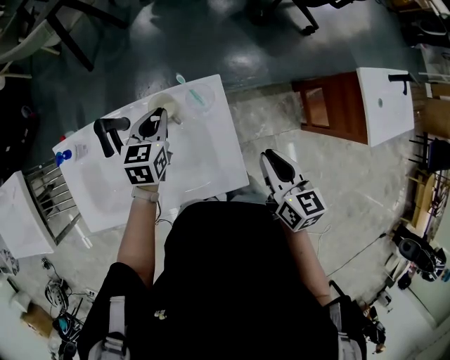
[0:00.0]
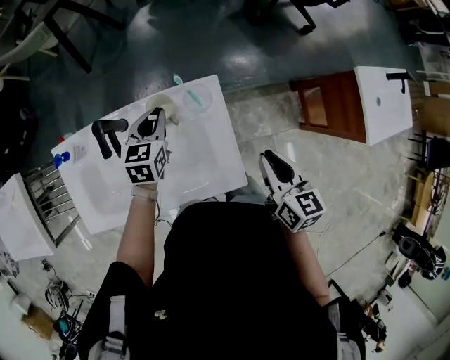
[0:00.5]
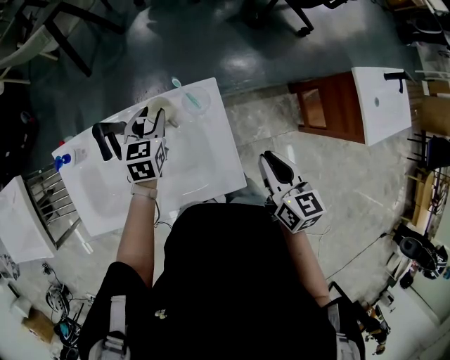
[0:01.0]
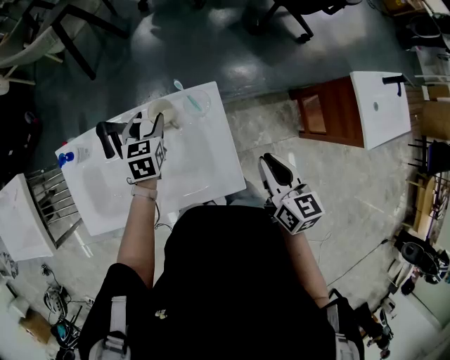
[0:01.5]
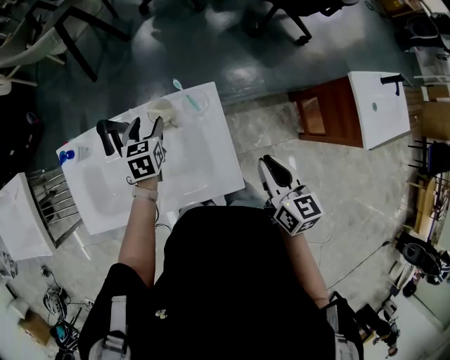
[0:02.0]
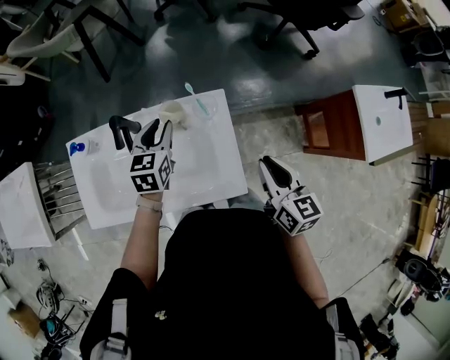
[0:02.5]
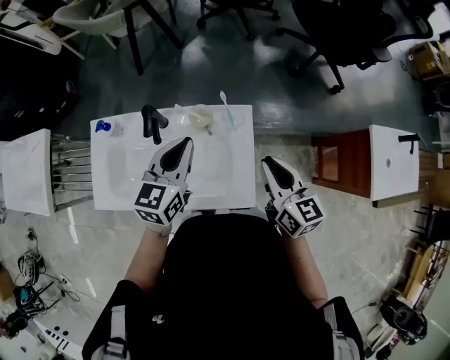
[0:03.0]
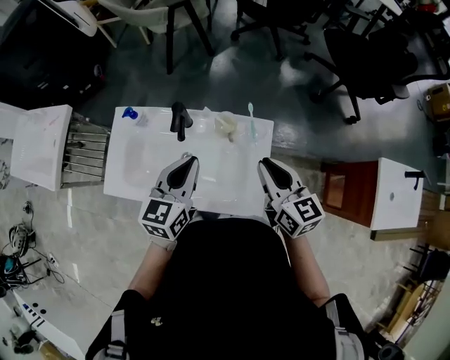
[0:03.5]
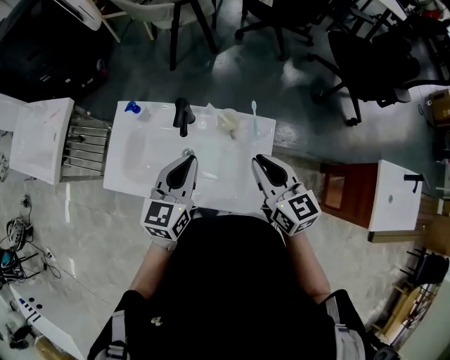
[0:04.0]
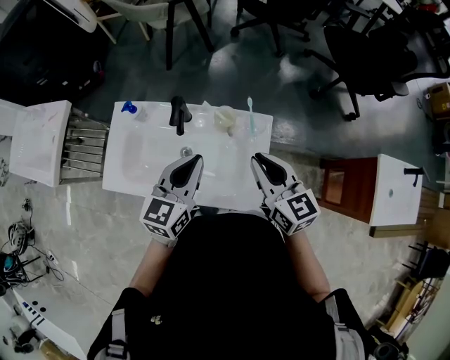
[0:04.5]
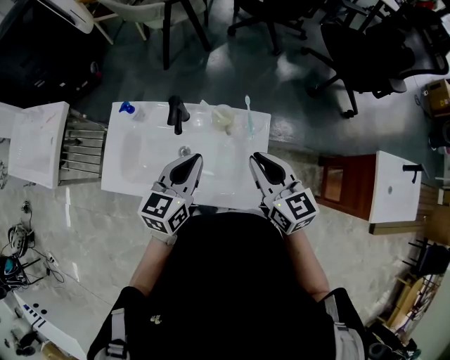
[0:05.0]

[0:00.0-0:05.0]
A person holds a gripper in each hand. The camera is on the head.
0:00.0 to 0:02.5: The left gripper shifts by about 5 cm, and opens.
0:02.5 to 0:05.0: The right gripper travels to the left, upward and forward by roughly 15 cm, and swivels about 30 degrees, while the left gripper heads backward and upward, covering about 15 cm, and closes its fingers.

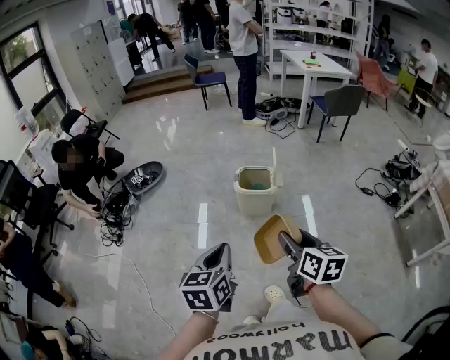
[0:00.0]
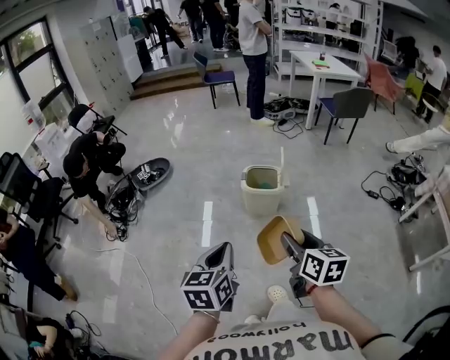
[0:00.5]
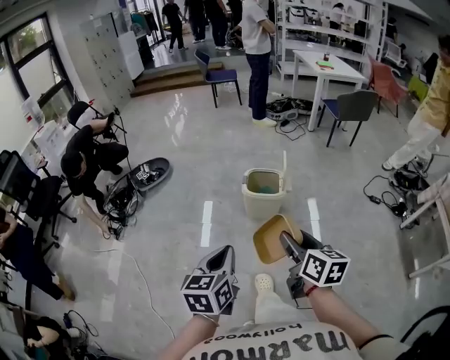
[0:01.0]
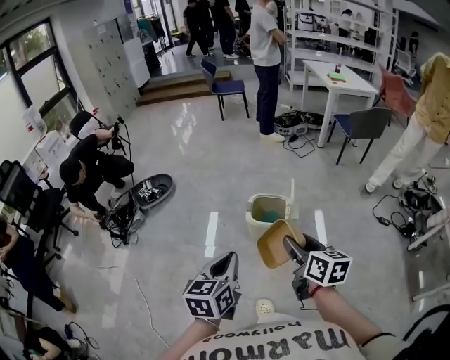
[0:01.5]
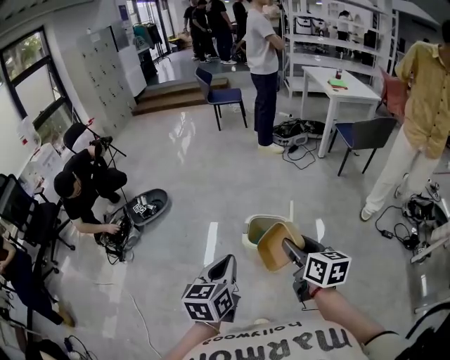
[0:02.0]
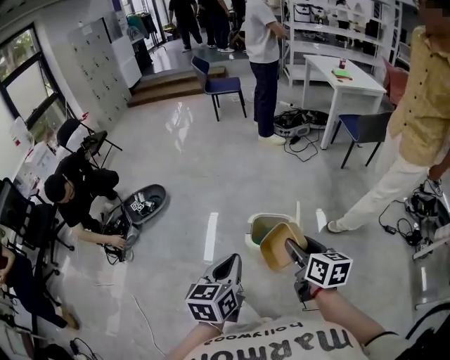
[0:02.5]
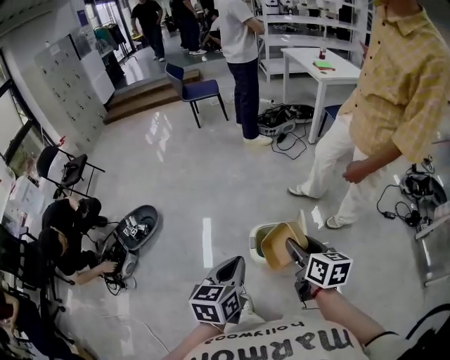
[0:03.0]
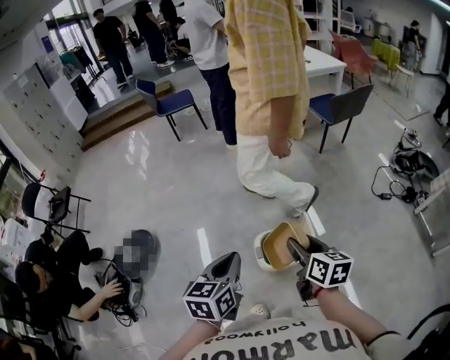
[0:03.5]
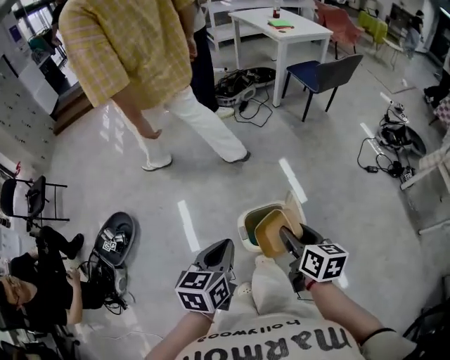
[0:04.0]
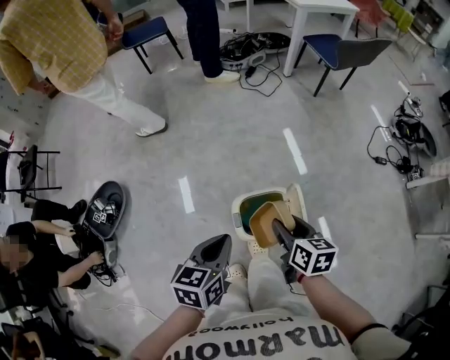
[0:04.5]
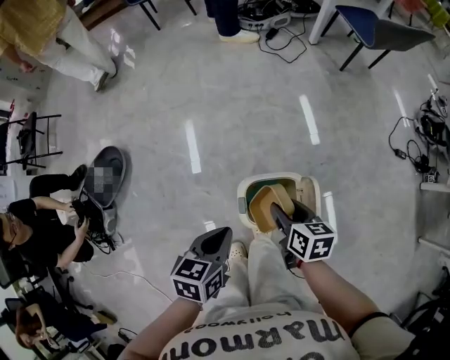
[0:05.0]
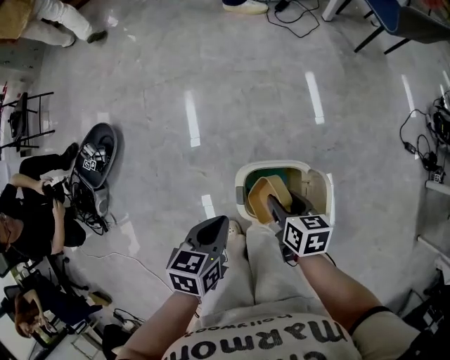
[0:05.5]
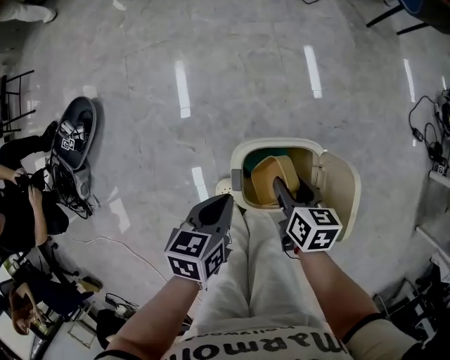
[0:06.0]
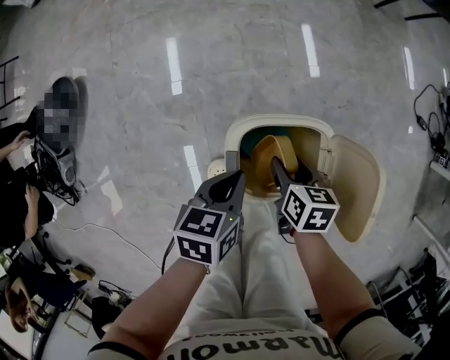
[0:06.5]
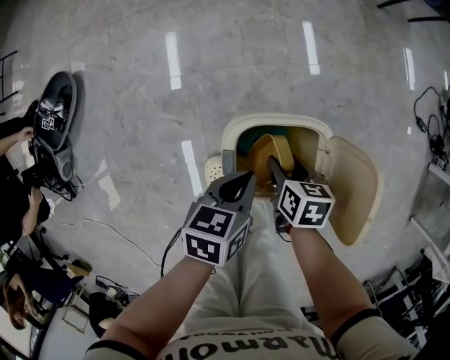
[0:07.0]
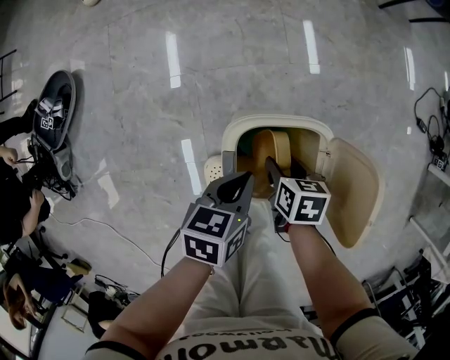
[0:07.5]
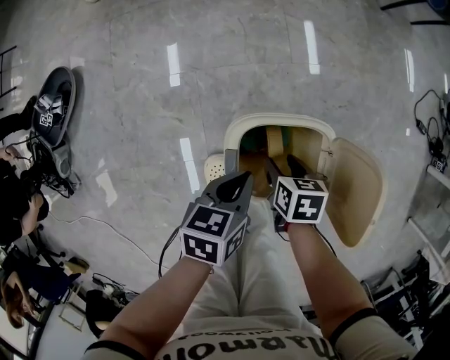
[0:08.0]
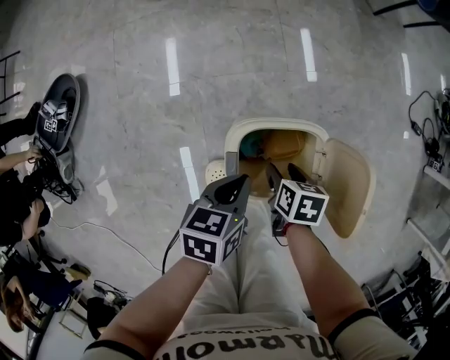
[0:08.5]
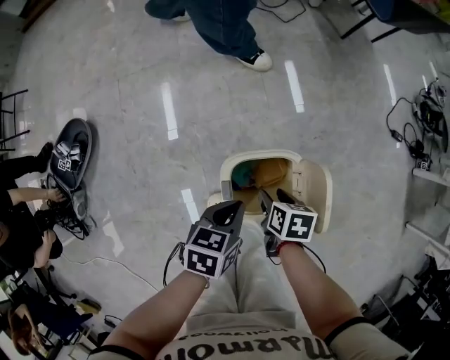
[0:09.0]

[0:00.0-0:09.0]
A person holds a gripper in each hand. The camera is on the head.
0:00.0 to 0:02.0: Both grippers travel together forward, some 30 cm.
0:02.0 to 0:04.5: The left gripper ends up roughly 30 cm from where it was, and turns by roughly 30 degrees. Meanwhile the right gripper shifts by approximately 30 cm, and rotates approximately 30 degrees.
0:04.5 to 0:07.0: Both grippers travel together downward, some 30 cm. The left gripper rotates approximately 20 degrees, while the right gripper swivels some 30 degrees.
0:07.0 to 0:09.0: The two grippers go approximately 10 cm upward.

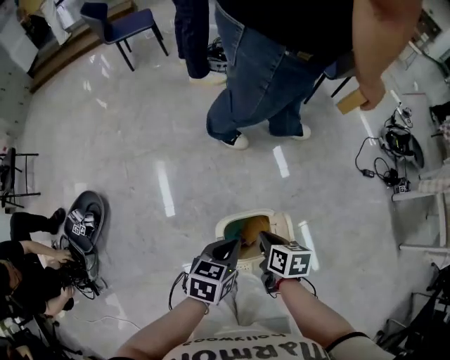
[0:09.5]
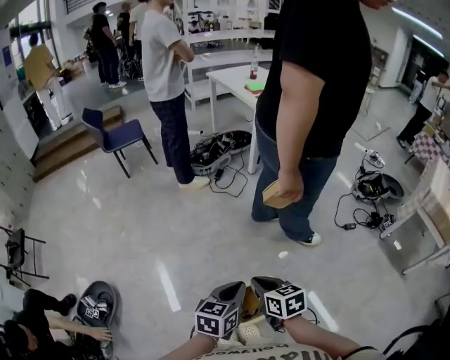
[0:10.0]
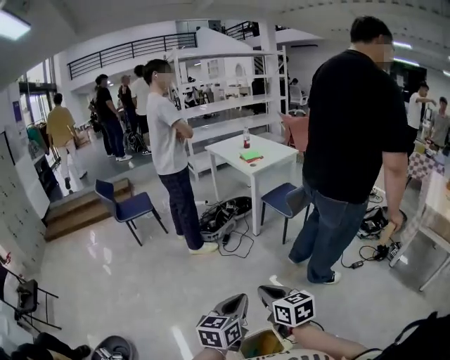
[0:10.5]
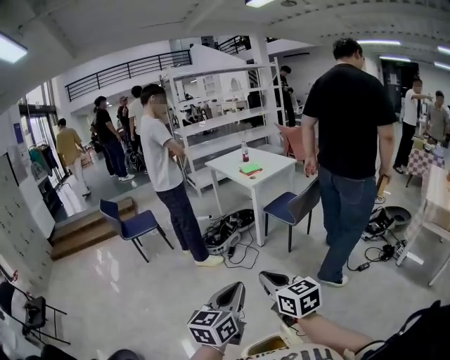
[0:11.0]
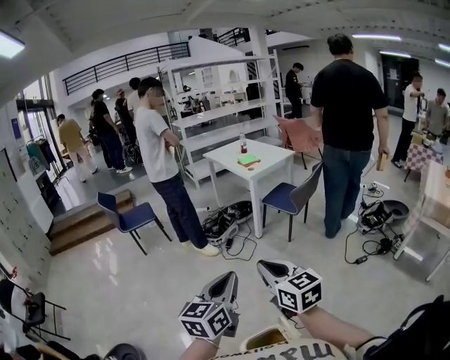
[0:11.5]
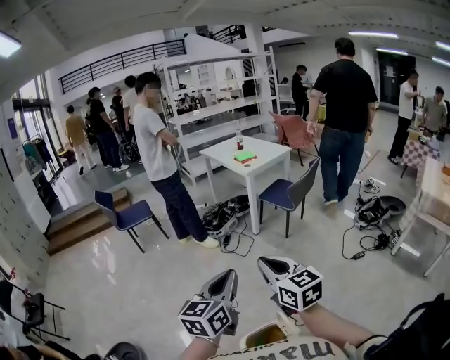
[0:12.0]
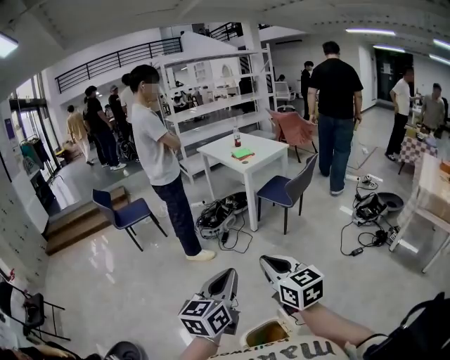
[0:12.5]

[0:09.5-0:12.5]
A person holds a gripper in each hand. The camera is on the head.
0:09.5 to 0:11.0: Both grippers move upward, some 40 cm. The left gripper points its fingers approximately 40 degrees further upward, while the right gripper tilts its fingers some 40 degrees upward.
0:11.0 to 0:12.5: The grippers move only a little.

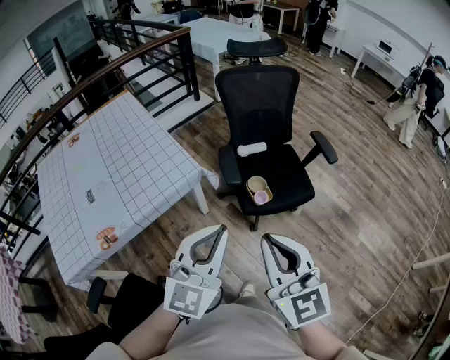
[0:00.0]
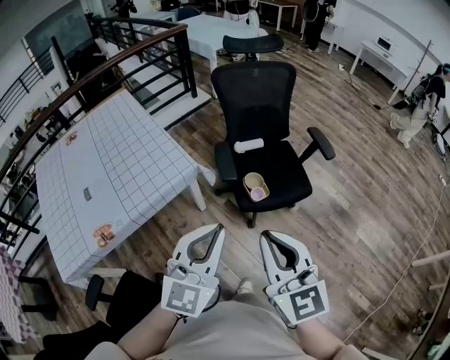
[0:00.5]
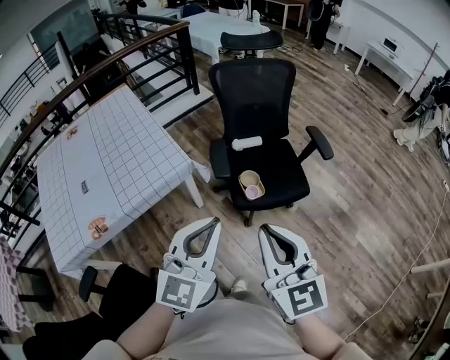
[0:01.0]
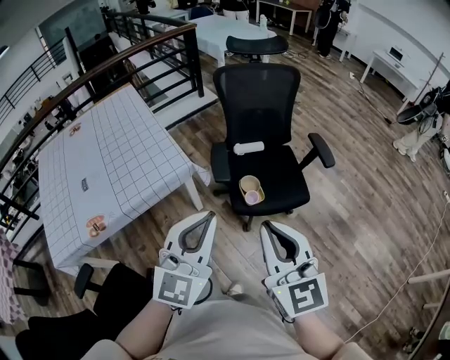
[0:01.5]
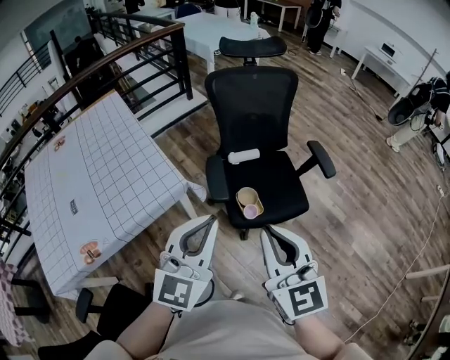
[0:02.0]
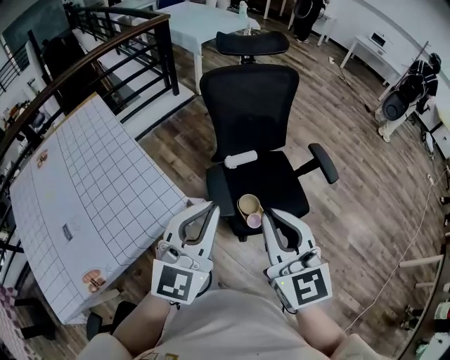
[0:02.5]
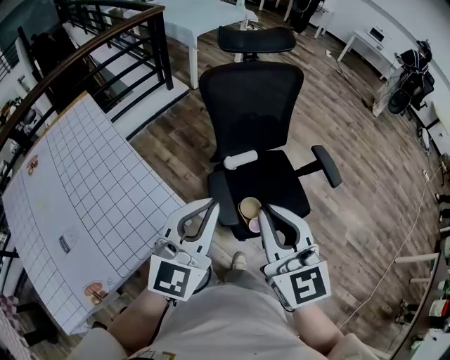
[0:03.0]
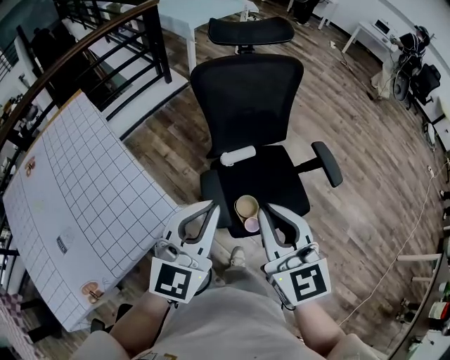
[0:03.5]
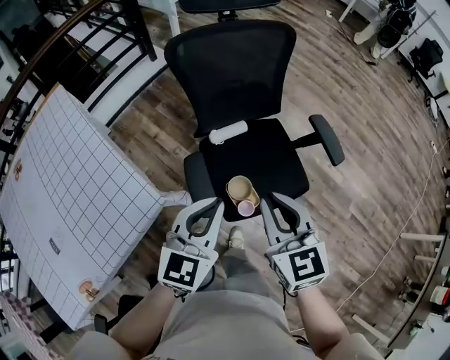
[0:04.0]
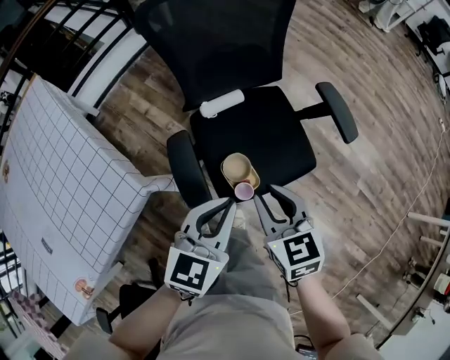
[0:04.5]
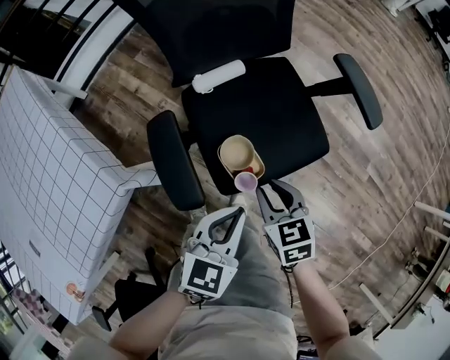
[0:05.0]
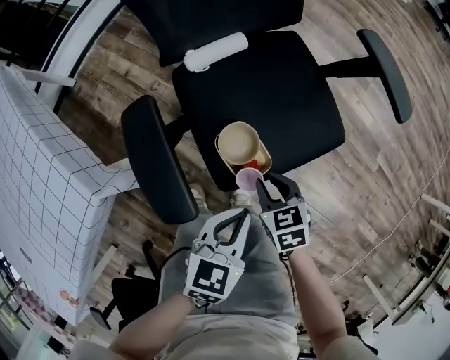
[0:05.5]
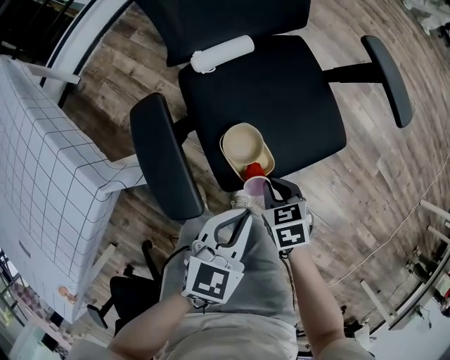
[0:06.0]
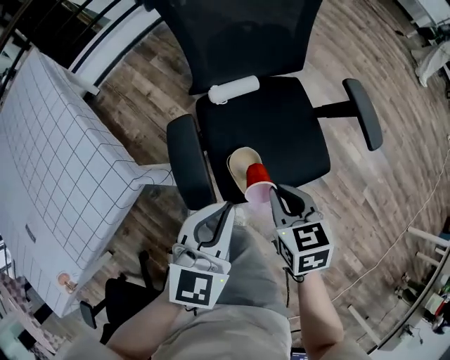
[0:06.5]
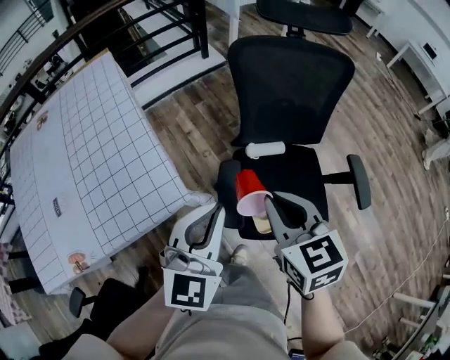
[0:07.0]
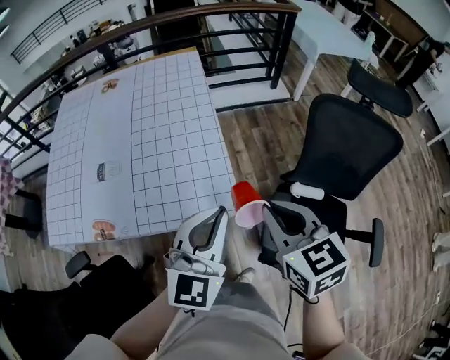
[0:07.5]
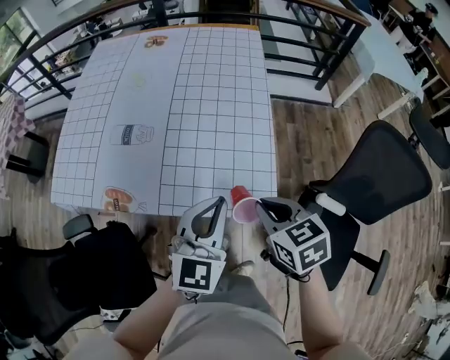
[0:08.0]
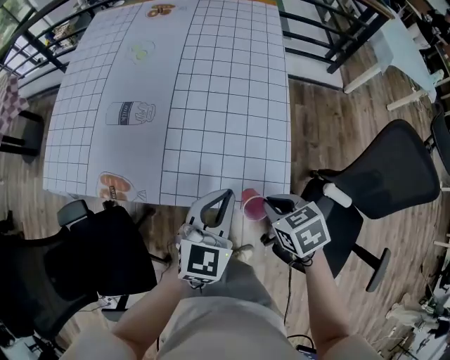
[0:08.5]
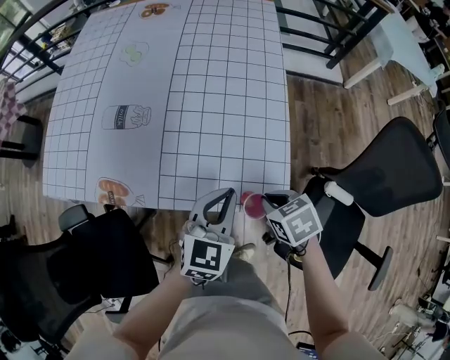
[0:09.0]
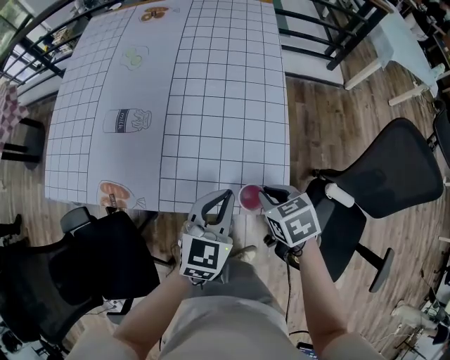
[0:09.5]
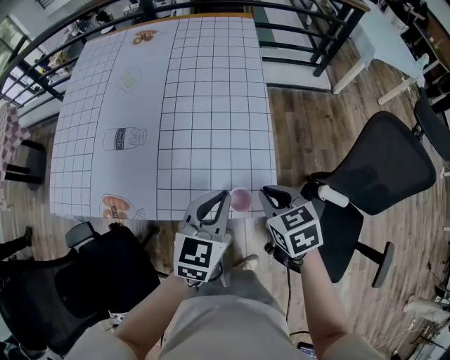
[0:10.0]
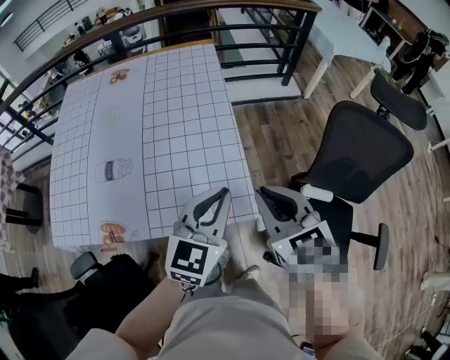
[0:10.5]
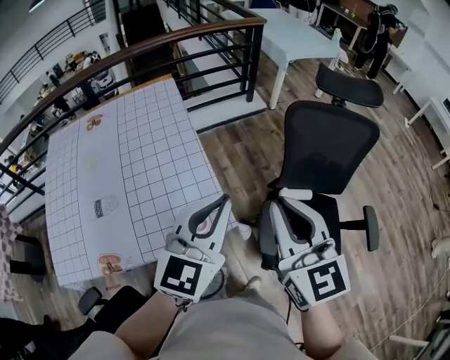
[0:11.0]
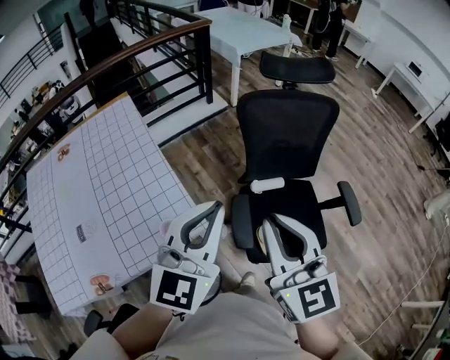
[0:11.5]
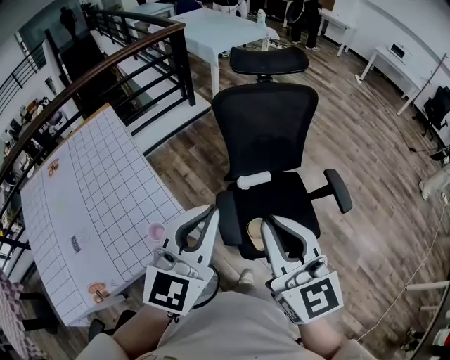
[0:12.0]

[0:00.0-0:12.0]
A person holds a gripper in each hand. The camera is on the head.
0:00.0 to 0:02.0: Both grippers move forward, roughly 15 cm.
0:02.0 to 0:04.0: Both grippers travel together forward and downward, about 25 cm. The left gripper swivels approximately 20 degrees.
0:04.0 to 0:06.0: Both grippers travel together downward, some 40 cm. The right gripper tilts its fingers approximately 40 degrees downward; the left gripper swivels approximately 20 degrees.
0:06.0 to 0:08.0: The pair of grippers is taken some 50 cm. The right gripper swivels some 60 degrees, while the left gripper rotates some 70 degrees.
0:08.0 to 0:10.0: Both grippers move downward, about 5 cm.
0:10.0 to 0:12.0: The left gripper shifts by some 40 cm, and rotates roughly 40 degrees, while the right gripper ends up roughly 40 cm from where it was, and points its fingers roughly 40 degrees further upward.
